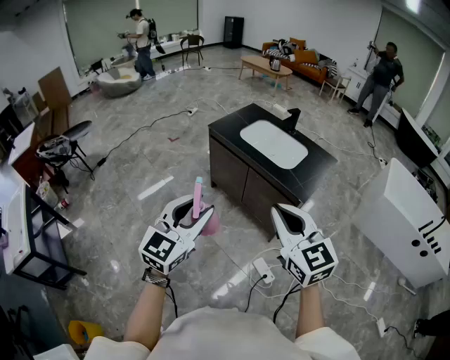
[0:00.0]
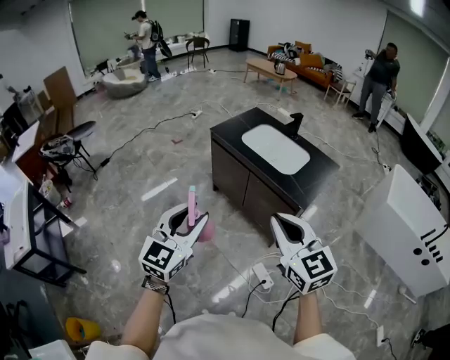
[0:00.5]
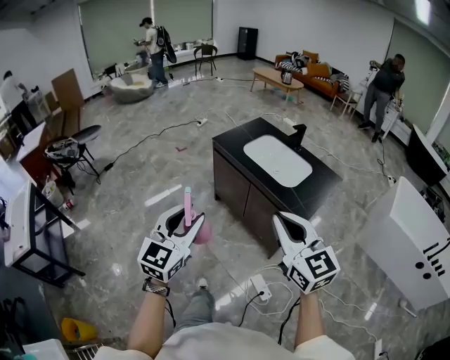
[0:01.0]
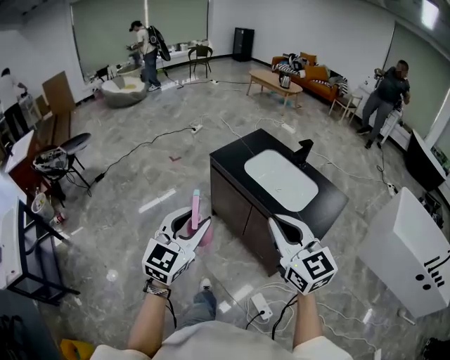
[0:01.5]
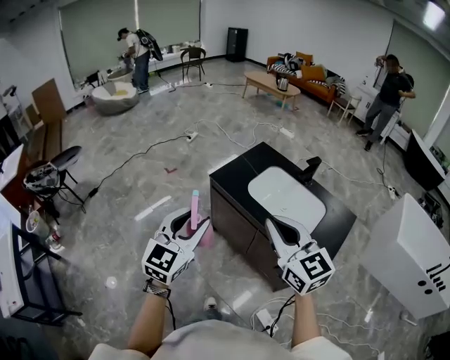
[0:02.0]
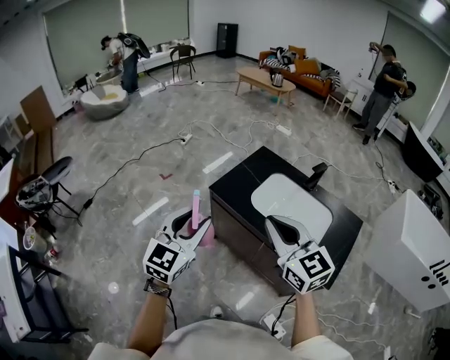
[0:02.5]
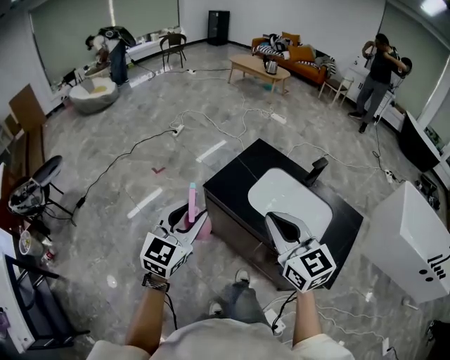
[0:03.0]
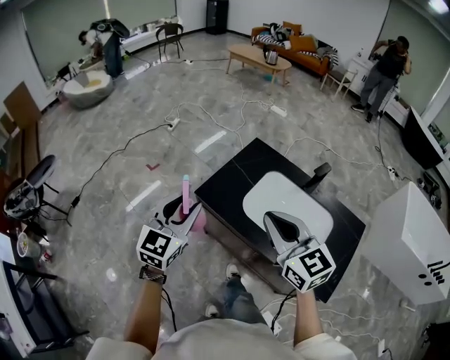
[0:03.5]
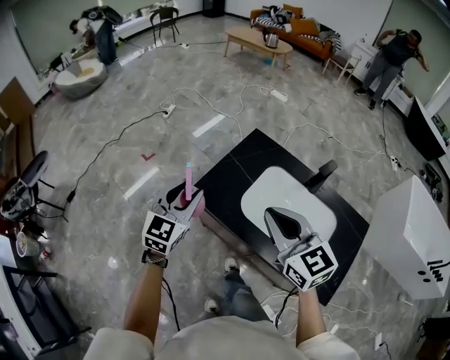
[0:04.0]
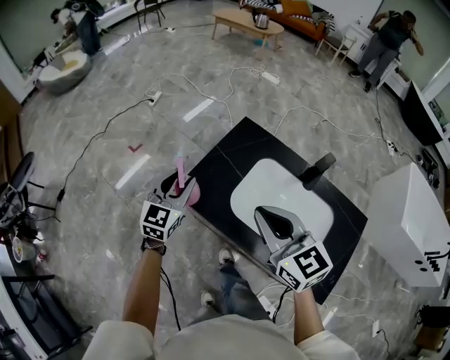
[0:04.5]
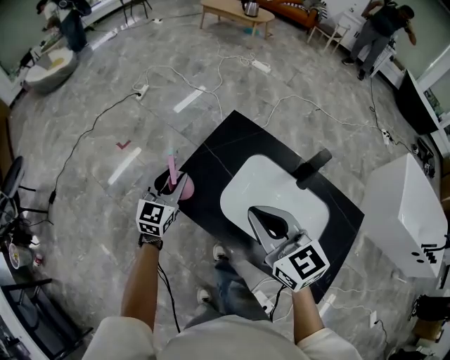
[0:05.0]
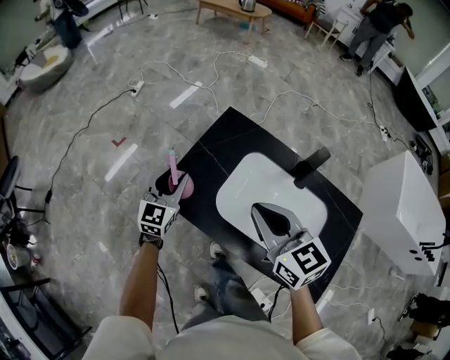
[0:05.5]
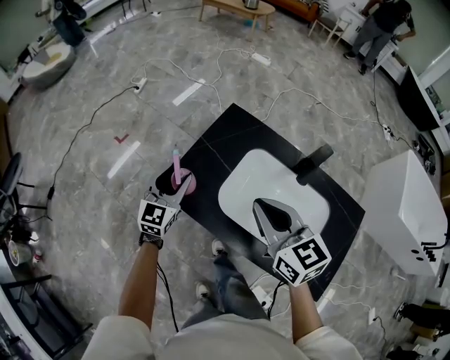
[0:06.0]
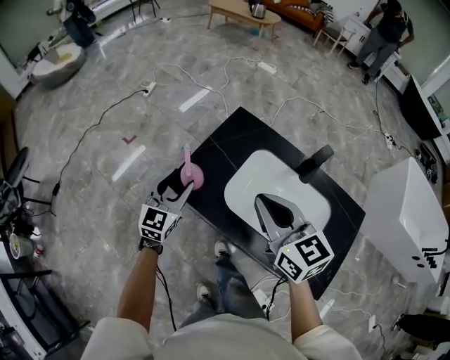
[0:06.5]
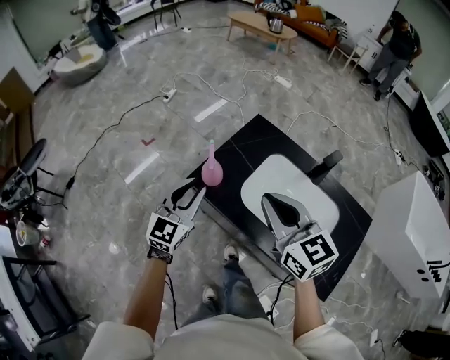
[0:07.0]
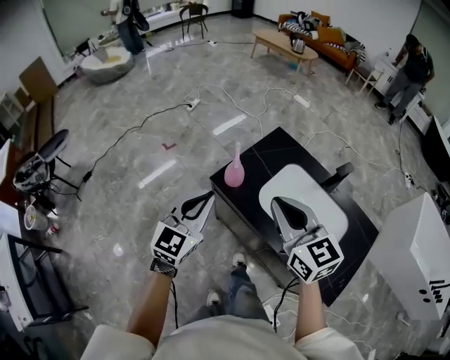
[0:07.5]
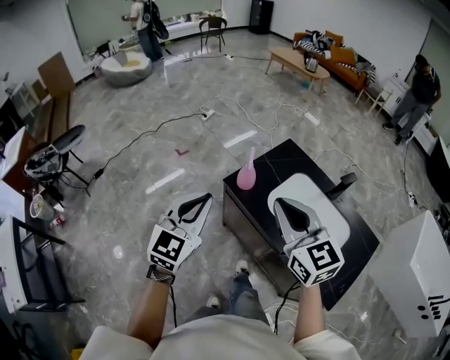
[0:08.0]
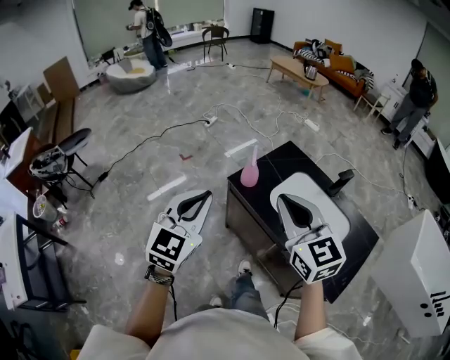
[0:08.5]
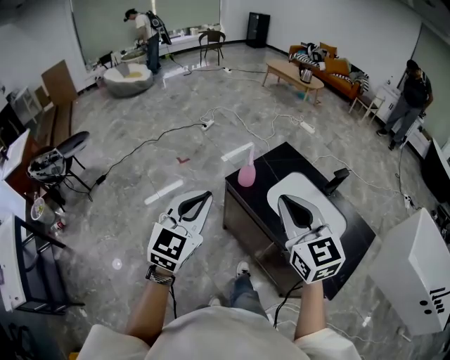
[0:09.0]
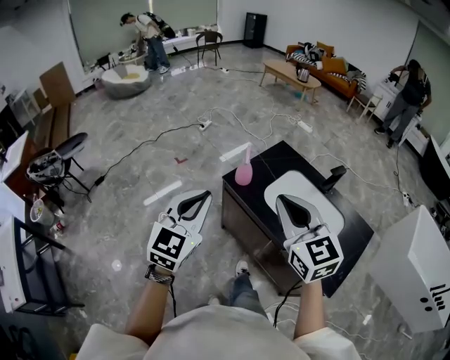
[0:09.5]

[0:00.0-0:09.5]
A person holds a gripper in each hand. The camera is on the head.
0:00.0 to 0:02.0: Both grippers move forward, roughly 35 cm.
0:02.0 to 0:04.0: Both grippers move forward, some 35 cm.
0:04.0 to 0:05.5: The right gripper moves forward, downward and to the right, approximately 10 cm. The left gripper shifts roughly 20 cm downward, forward and to the right.
0:05.5 to 0:07.5: The left gripper is displaced backward and upward by about 30 cm, and closes, while the right gripper goes about 15 cm backward, to the left and upward.
0:07.5 to 0:09.5: The two grippers go some 15 cm backward and upward.

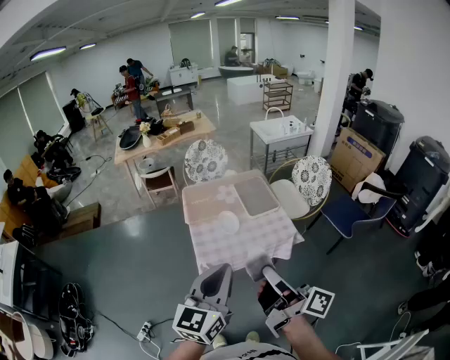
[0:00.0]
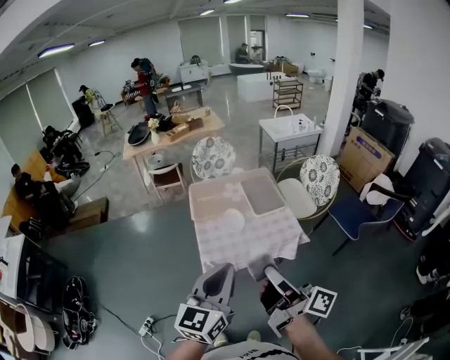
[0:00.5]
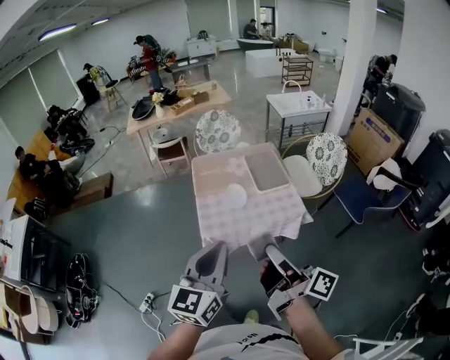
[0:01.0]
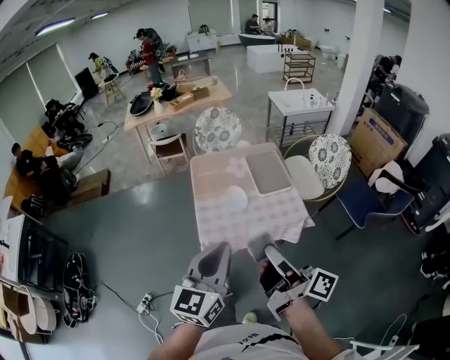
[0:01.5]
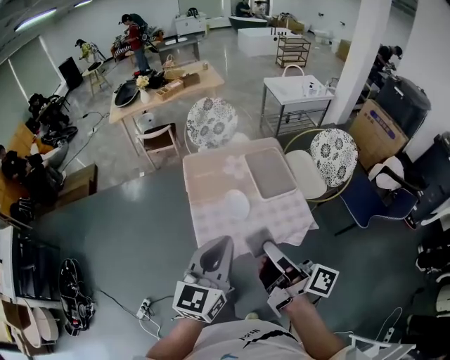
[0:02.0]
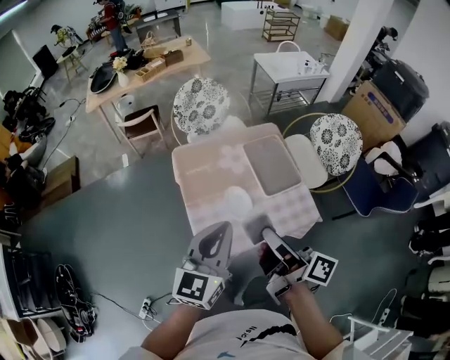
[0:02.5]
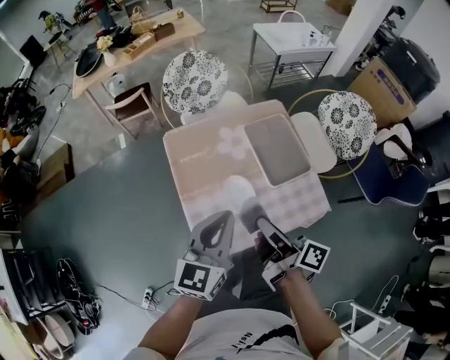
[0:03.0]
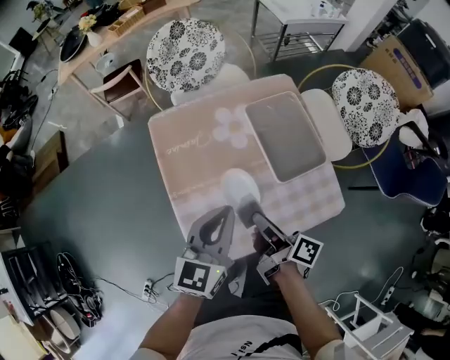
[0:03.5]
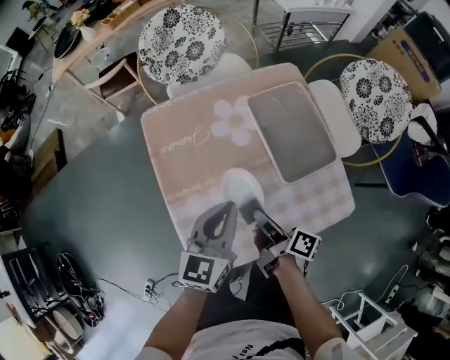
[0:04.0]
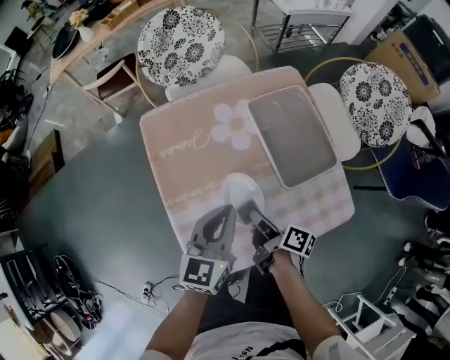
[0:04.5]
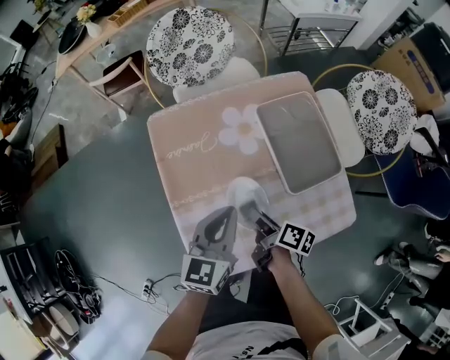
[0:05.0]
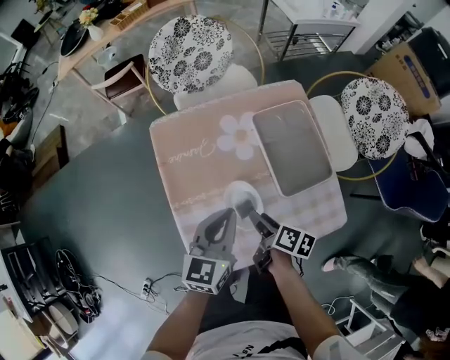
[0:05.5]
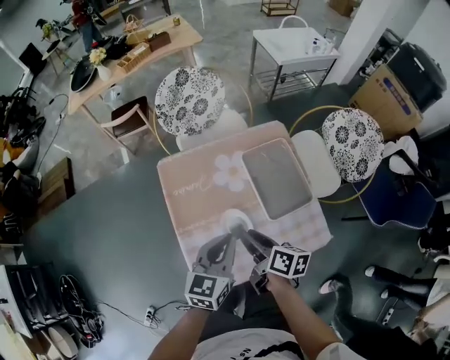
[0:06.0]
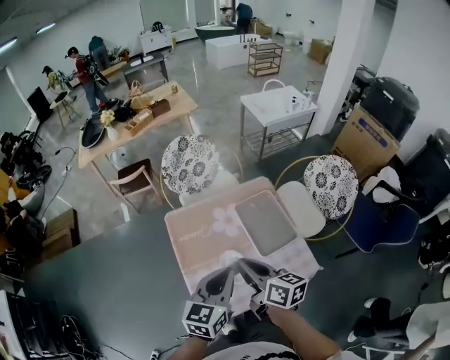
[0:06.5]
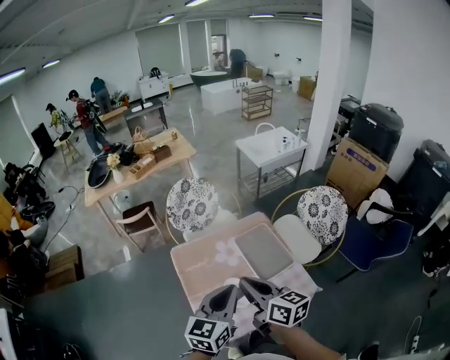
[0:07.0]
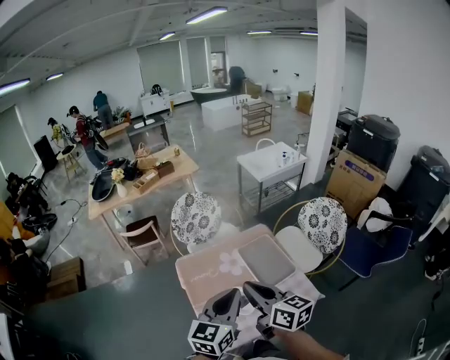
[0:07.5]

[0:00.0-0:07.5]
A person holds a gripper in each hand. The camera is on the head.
0:00.0 to 0:02.0: Both grippers travel together forward, about 20 cm.
0:02.0 to 0:04.0: The grippers both shift downward and forward by about 40 cm. The right gripper changes its angle by roughly 30 degrees.
0:04.0 to 0:05.5: The right gripper turns by about 30 degrees, and opens.
0:05.5 to 0:07.5: The two grippers go about 35 cm upward. The right gripper angles its fingers upward, by approximately 40 degrees, and closes up.

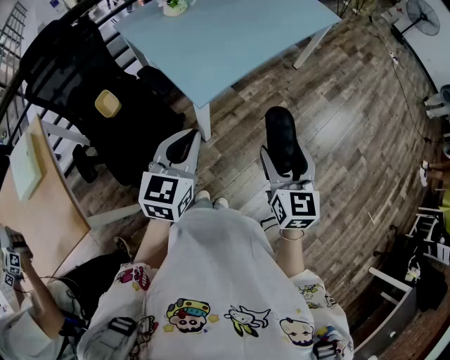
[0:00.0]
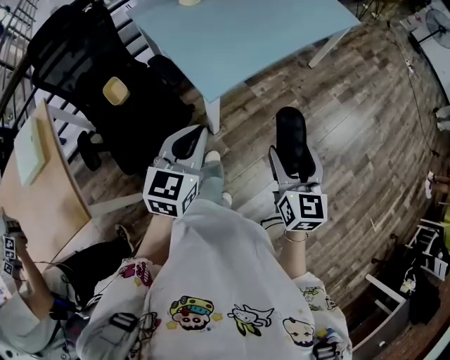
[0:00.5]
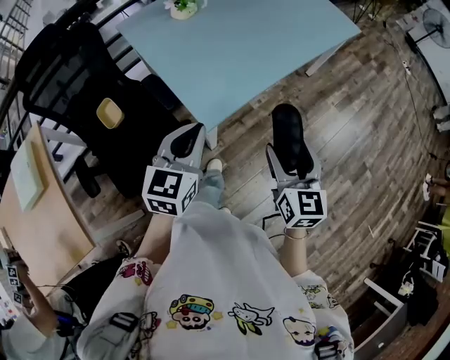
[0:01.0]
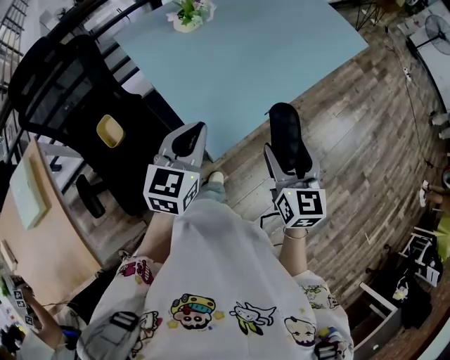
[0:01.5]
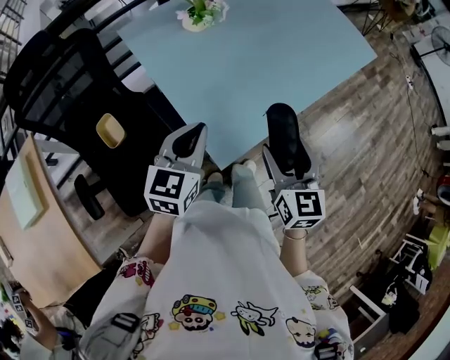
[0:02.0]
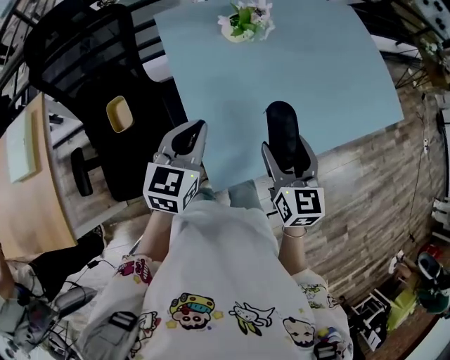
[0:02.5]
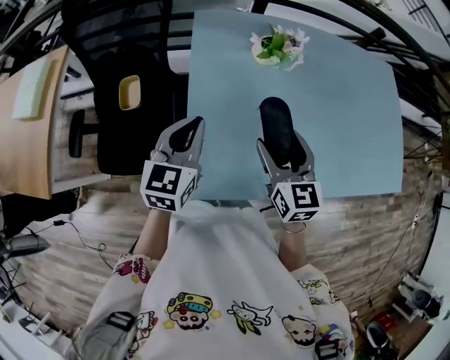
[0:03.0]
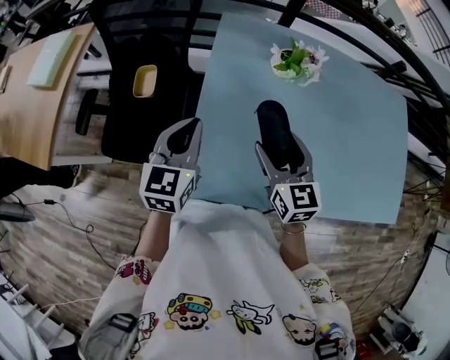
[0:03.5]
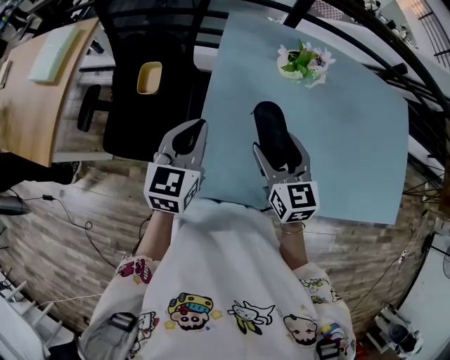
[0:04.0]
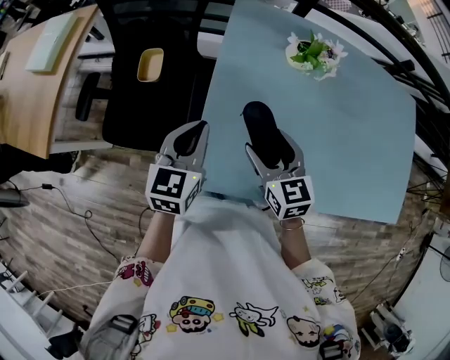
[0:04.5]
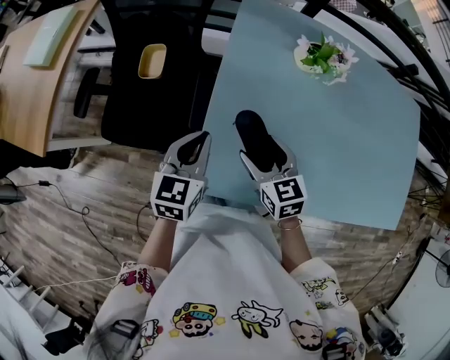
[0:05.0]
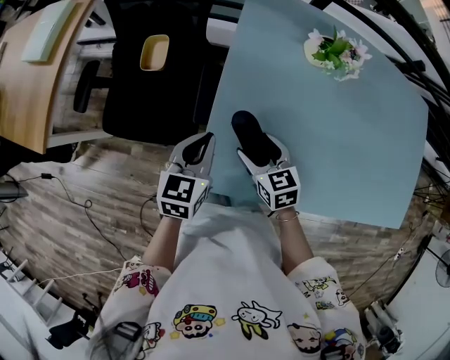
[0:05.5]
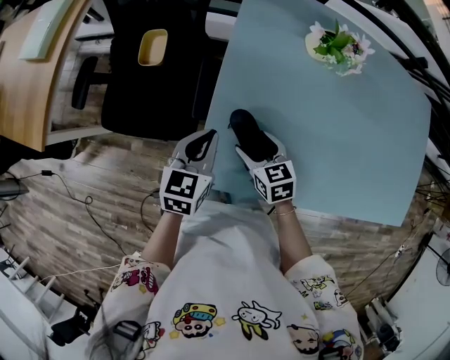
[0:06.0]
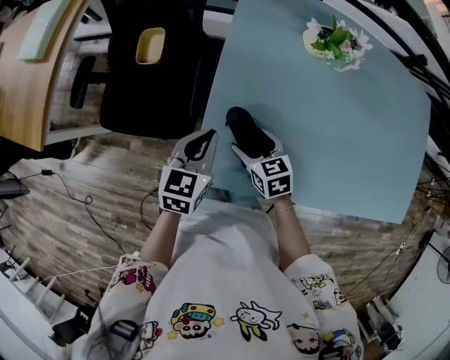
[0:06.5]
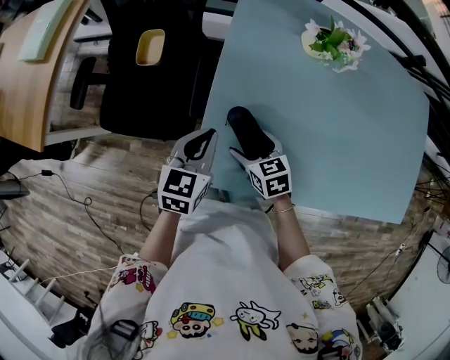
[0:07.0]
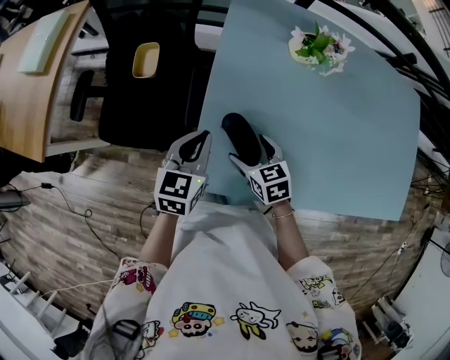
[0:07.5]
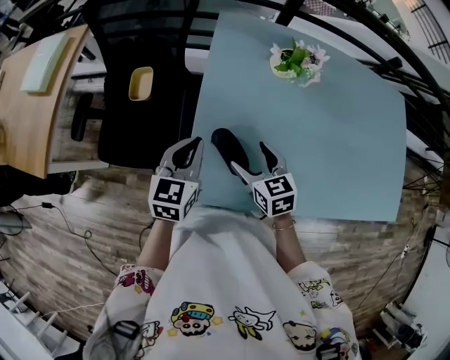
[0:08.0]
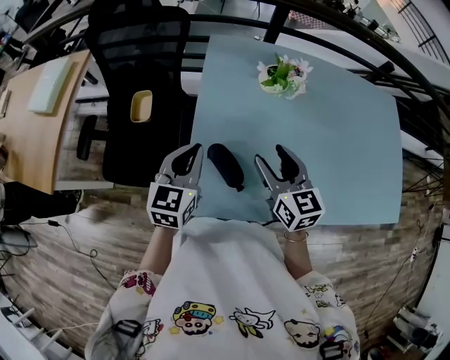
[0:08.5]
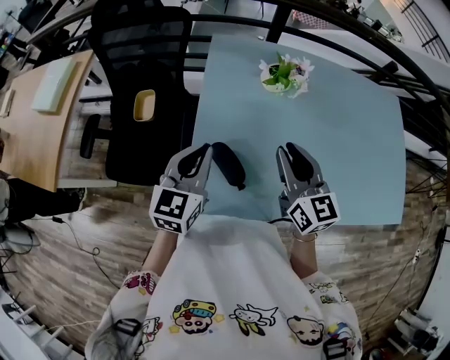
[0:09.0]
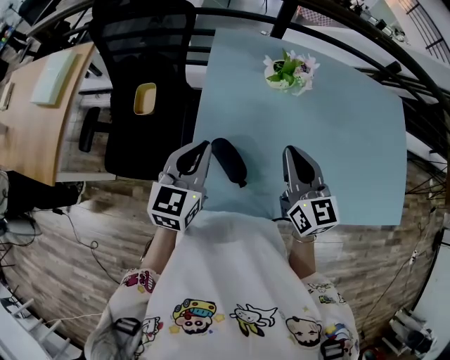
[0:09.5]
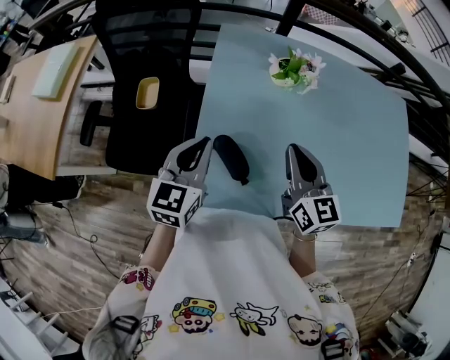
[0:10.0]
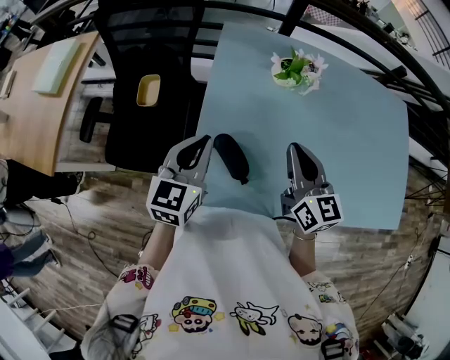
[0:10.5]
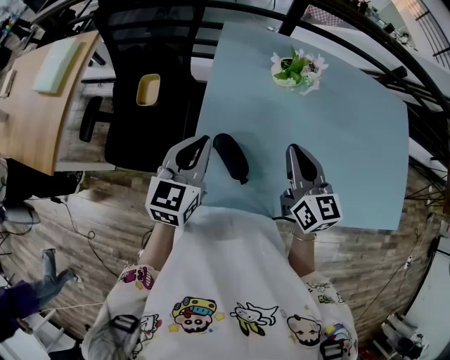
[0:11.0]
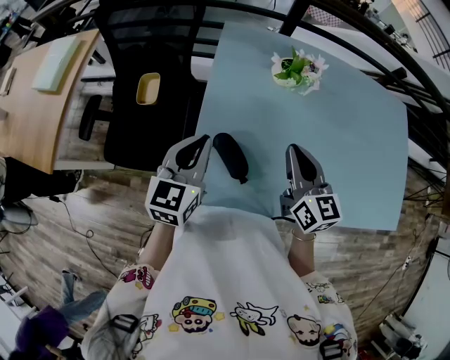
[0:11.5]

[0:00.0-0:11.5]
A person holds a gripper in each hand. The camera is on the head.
0:00.0 to 0:02.0: The right gripper goes some 30 cm forward and to the left; the left gripper travels forward by approximately 25 cm.
0:02.0 to 0:04.0: The right gripper ends up some 25 cm from where it was, and swivels about 50 degrees. The left gripper moves some 10 cm, and rotates some 50 degrees.
0:04.0 to 0:06.0: The left gripper travels downward by some 15 cm. Meanwhile the right gripper moves downward, approximately 20 cm, and changes its angle by some 30 degrees.
0:06.0 to 0:07.5: The grippers move only a little.
0:07.5 to 0:09.5: The right gripper heads upward and to the right, covering some 25 cm, points its fingers approximately 40 degrees further upward, and closes. Meanwhile the left gripper travels upward by about 10 cm.
0:09.5 to 0:11.5: The grippers stay close to where they were, moving slightly.
